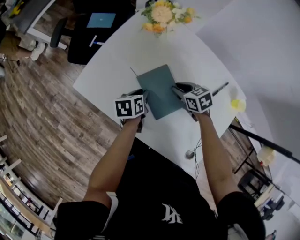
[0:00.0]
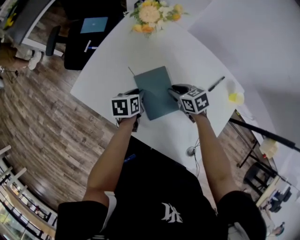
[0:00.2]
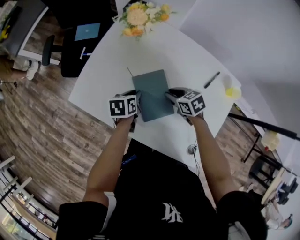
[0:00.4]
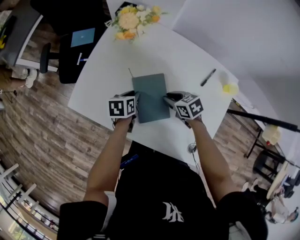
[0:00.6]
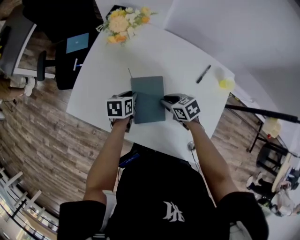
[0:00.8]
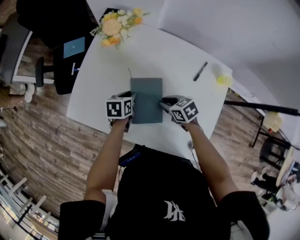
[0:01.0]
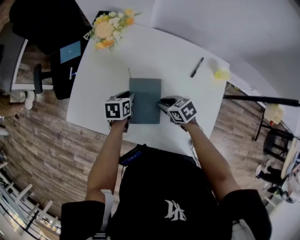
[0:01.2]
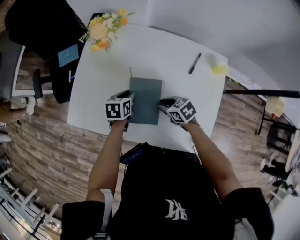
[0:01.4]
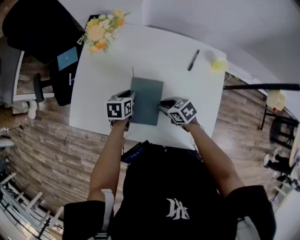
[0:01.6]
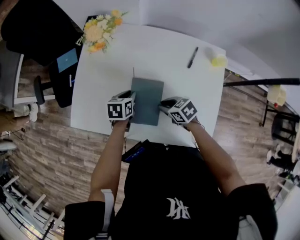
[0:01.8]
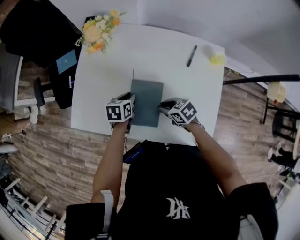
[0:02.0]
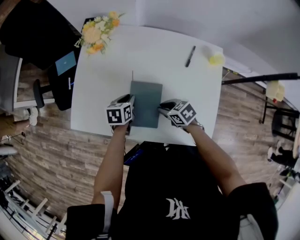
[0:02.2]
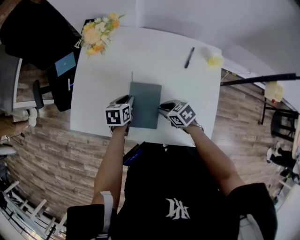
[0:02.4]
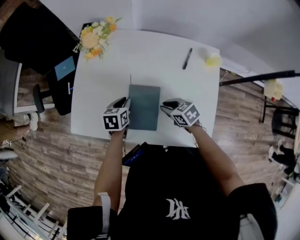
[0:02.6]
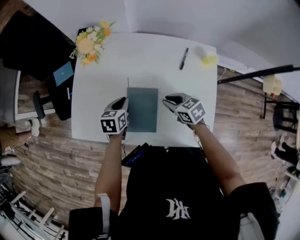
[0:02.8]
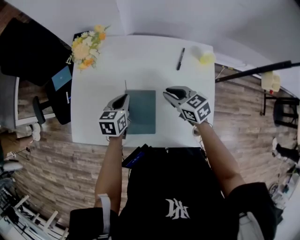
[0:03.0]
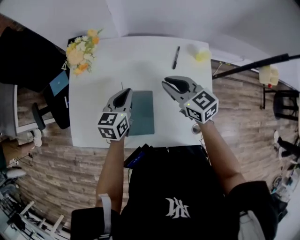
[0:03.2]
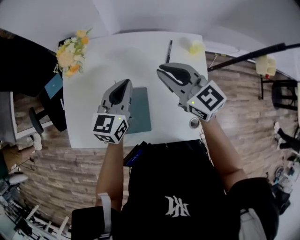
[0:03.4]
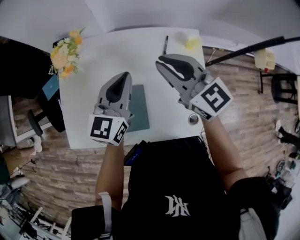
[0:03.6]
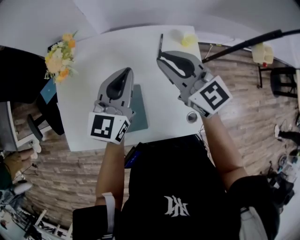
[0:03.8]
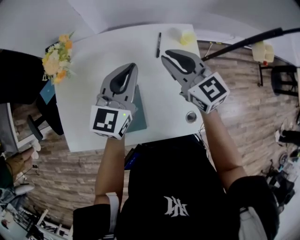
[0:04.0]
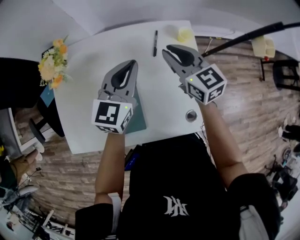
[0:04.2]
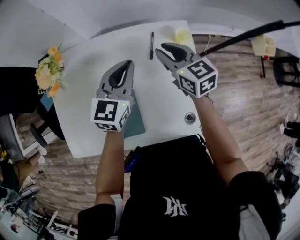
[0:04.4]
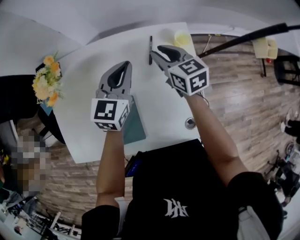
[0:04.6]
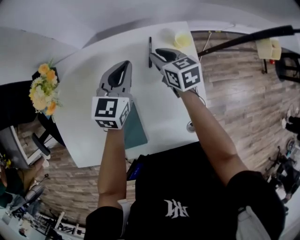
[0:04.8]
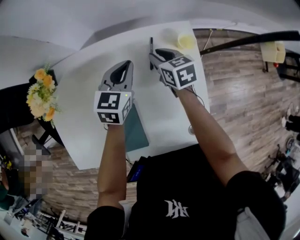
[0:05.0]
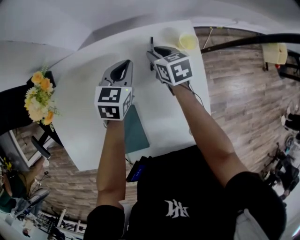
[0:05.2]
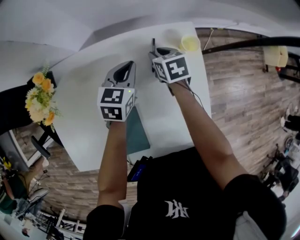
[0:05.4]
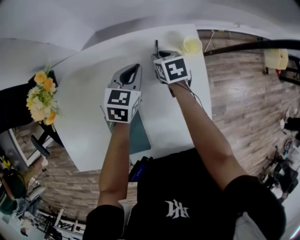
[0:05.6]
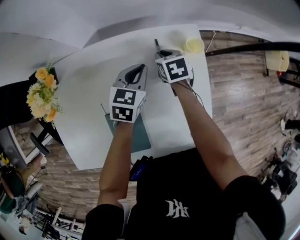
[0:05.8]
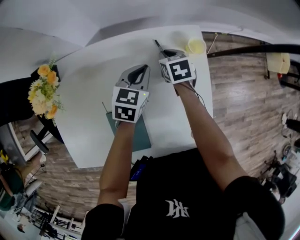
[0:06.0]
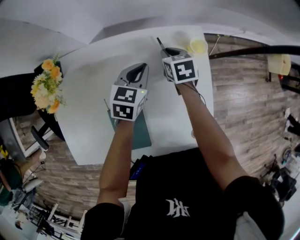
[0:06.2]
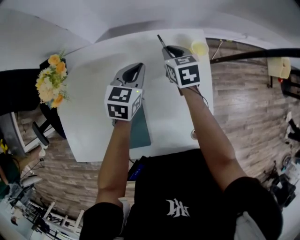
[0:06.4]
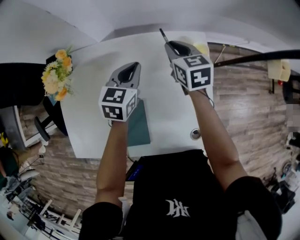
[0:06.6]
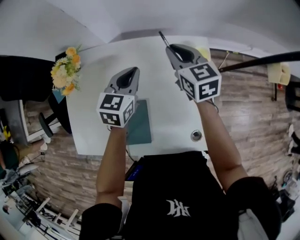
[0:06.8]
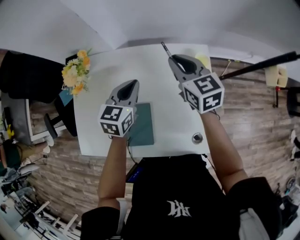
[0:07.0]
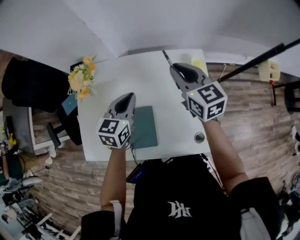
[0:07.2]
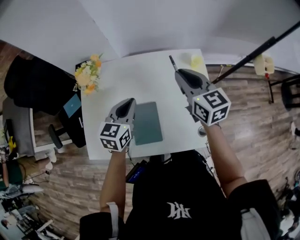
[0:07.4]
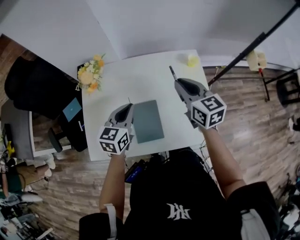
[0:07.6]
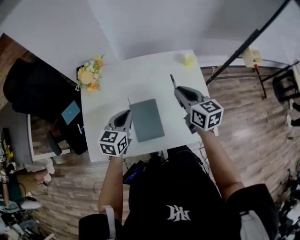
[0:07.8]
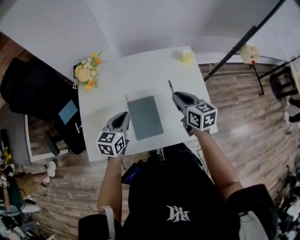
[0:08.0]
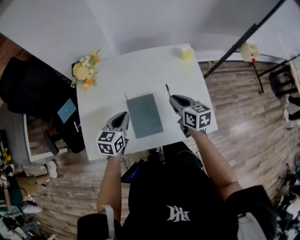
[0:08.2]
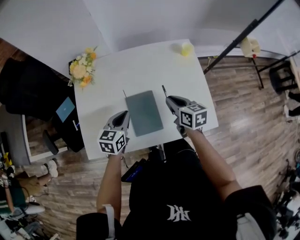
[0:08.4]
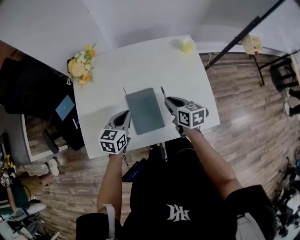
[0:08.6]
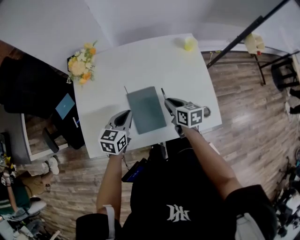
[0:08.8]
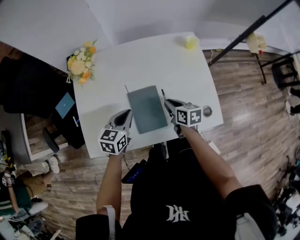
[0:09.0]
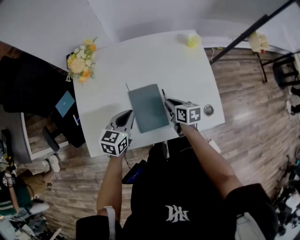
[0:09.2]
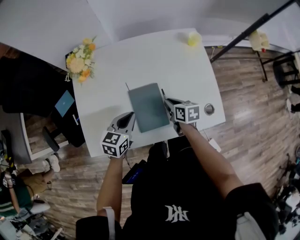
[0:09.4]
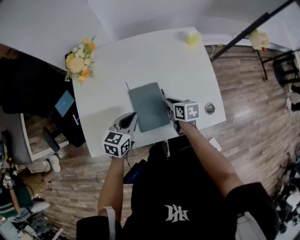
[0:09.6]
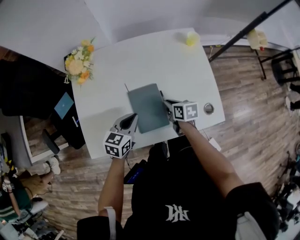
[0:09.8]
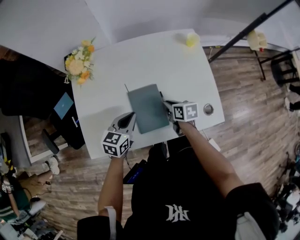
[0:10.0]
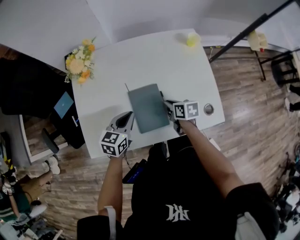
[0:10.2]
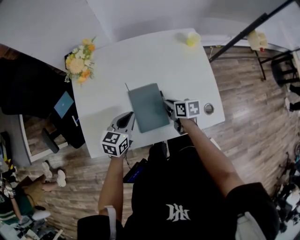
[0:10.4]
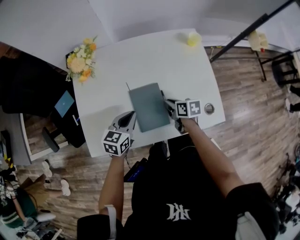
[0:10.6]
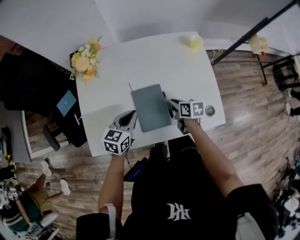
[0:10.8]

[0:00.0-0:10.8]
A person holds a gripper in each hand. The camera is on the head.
0:00.0 to 0:01.6: The left gripper is displaced to the right by about 5 cm, and changes its angle by roughly 30 degrees; the right gripper goes some 10 cm backward.
0:01.6 to 0:03.0: The right gripper goes approximately 10 cm upward and to the right, and swivels about 30 degrees. Meanwhile the left gripper is displaced upward by about 10 cm.
0:03.0 to 0:04.6: The left gripper is displaced to the right, forward and upward by roughly 25 cm, and changes its angle by about 30 degrees. The right gripper shifts about 20 cm forward and to the right, goes upward and returns, roughly 20 cm each way, and changes its angle by some 30 degrees.
0:04.6 to 0:06.2: Both grippers move downward, about 10 cm. The right gripper changes its angle by roughly 20 degrees.
0:06.2 to 0:07.8: The left gripper shifts about 30 cm backward, to the left and upward. Meanwhile the right gripper is displaced backward and upward by roughly 30 cm, and points its fingers approximately 30 degrees further upward.
0:07.8 to 0:09.2: The right gripper travels downward by some 20 cm, and swivels some 30 degrees; the left gripper is displaced downward by roughly 10 cm.
0:09.2 to 0:10.8: There are only small adjustments of the grippers.

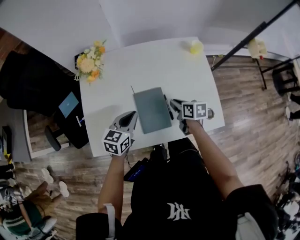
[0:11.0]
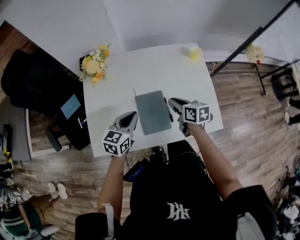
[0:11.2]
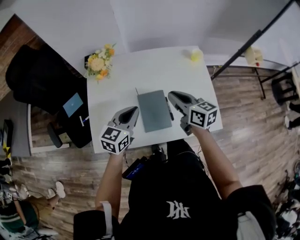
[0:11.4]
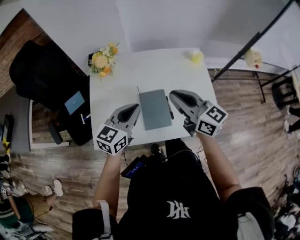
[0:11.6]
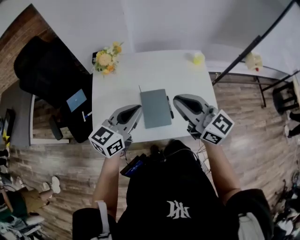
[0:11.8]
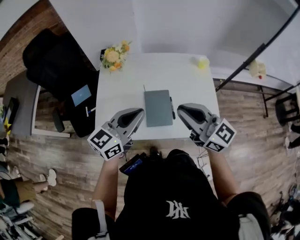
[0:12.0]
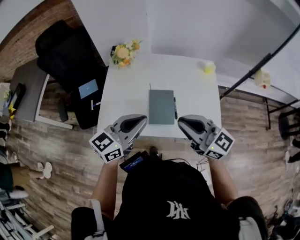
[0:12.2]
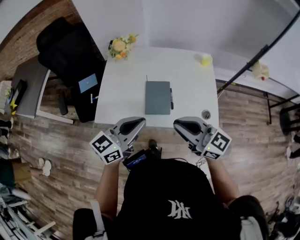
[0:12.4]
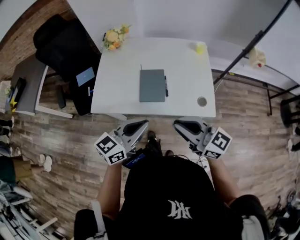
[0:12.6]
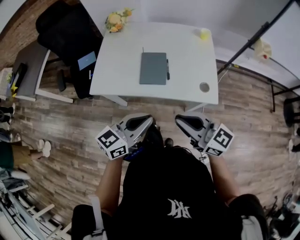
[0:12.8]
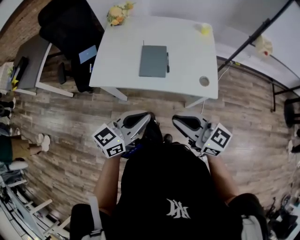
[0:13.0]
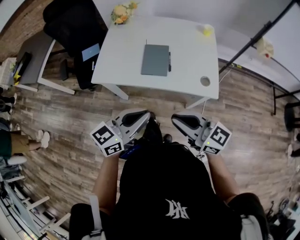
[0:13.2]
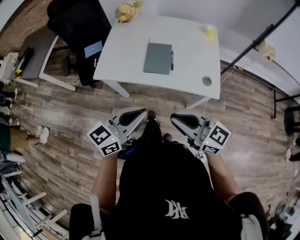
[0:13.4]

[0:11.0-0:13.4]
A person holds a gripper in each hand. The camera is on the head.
0:11.0 to 0:12.2: The grippers both shift upward and backward by about 30 cm. The left gripper rotates about 30 degrees, while the right gripper points its fingers approximately 40 degrees further upward.
0:12.2 to 0:13.4: The two grippers go some 20 cm backward.

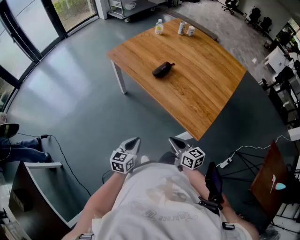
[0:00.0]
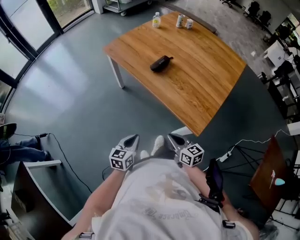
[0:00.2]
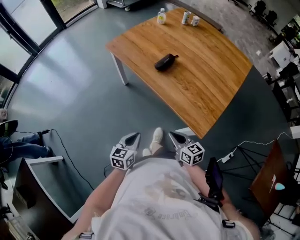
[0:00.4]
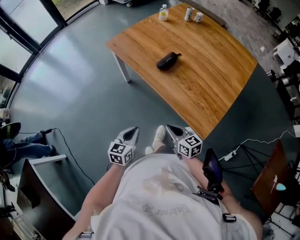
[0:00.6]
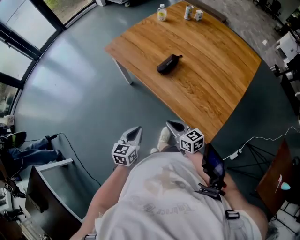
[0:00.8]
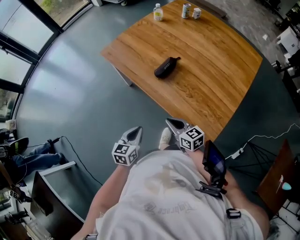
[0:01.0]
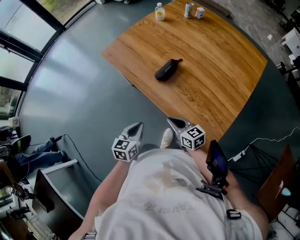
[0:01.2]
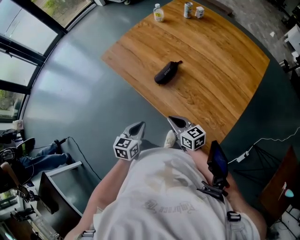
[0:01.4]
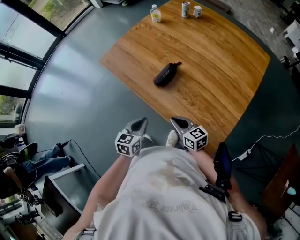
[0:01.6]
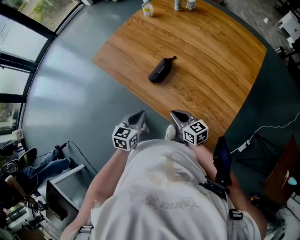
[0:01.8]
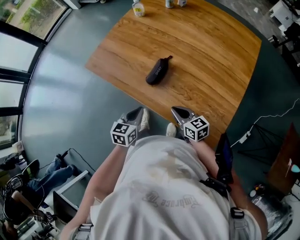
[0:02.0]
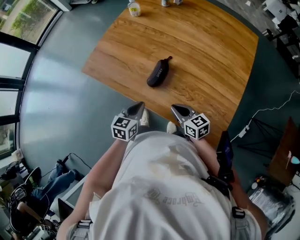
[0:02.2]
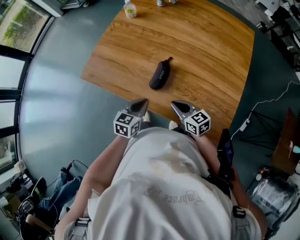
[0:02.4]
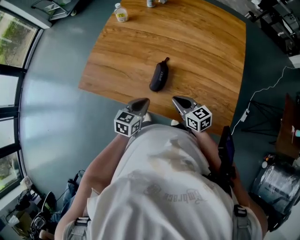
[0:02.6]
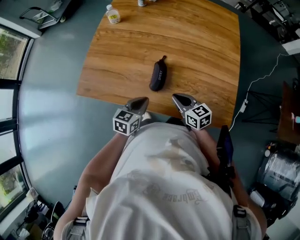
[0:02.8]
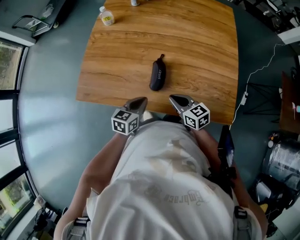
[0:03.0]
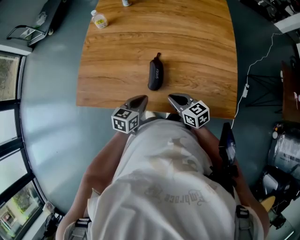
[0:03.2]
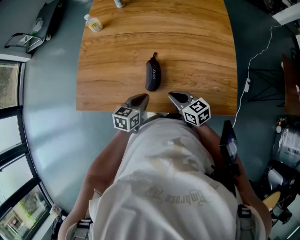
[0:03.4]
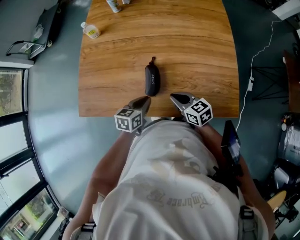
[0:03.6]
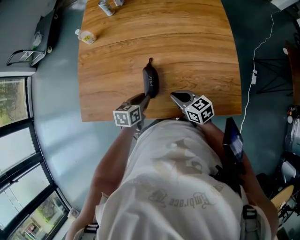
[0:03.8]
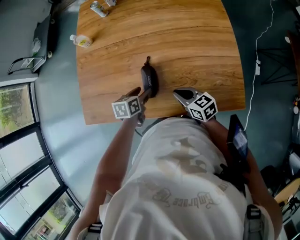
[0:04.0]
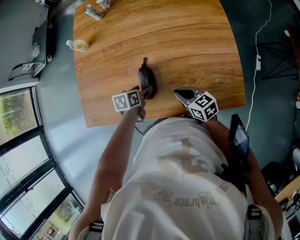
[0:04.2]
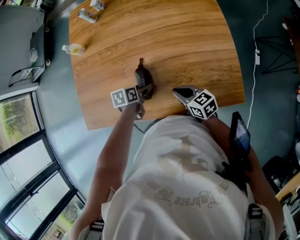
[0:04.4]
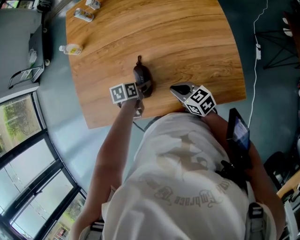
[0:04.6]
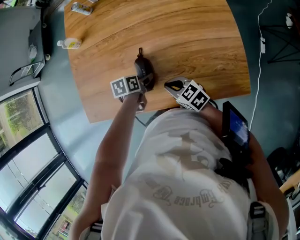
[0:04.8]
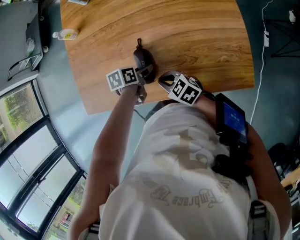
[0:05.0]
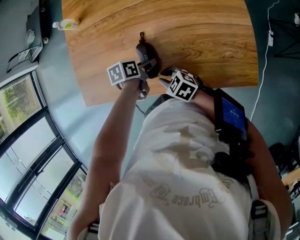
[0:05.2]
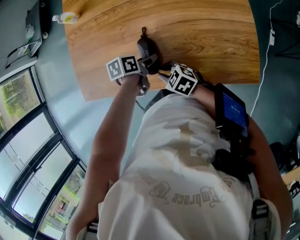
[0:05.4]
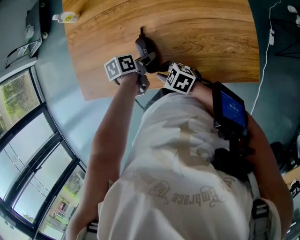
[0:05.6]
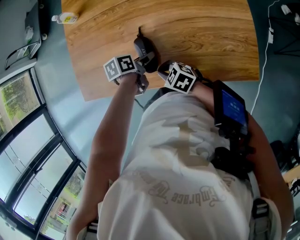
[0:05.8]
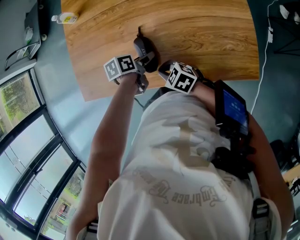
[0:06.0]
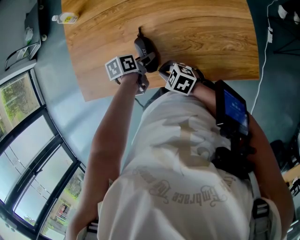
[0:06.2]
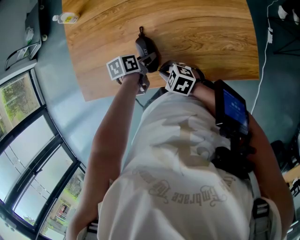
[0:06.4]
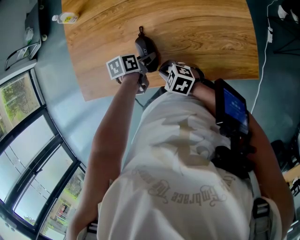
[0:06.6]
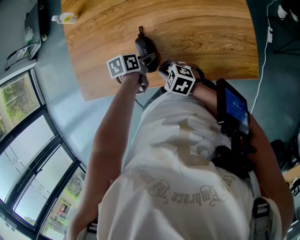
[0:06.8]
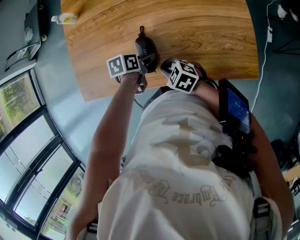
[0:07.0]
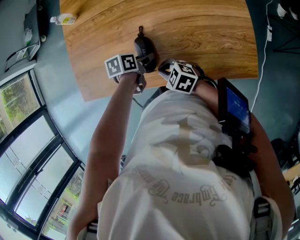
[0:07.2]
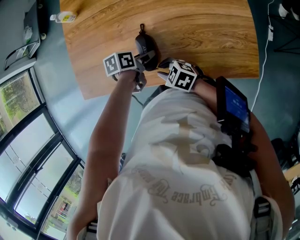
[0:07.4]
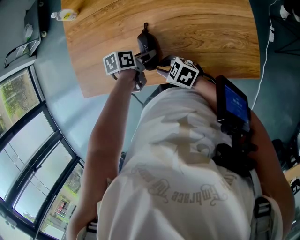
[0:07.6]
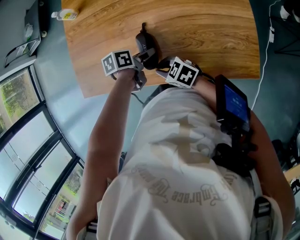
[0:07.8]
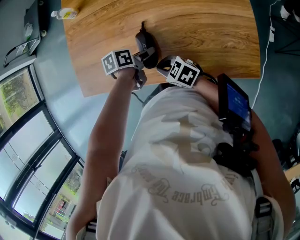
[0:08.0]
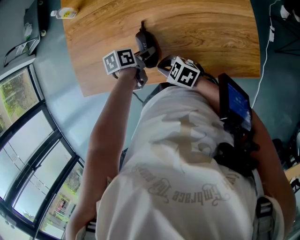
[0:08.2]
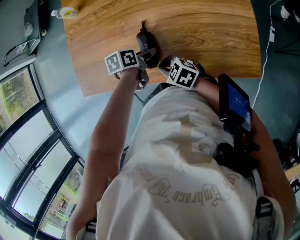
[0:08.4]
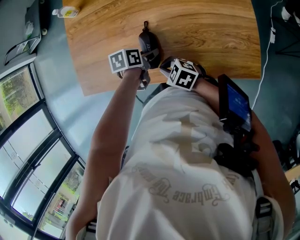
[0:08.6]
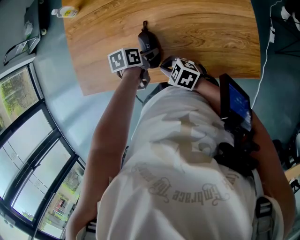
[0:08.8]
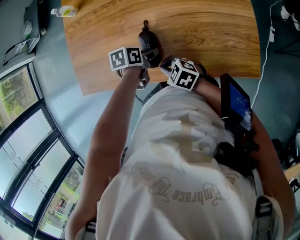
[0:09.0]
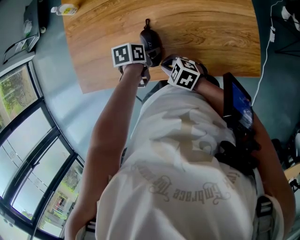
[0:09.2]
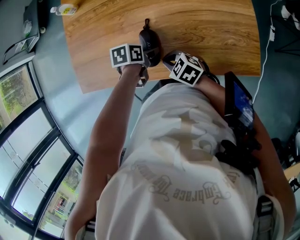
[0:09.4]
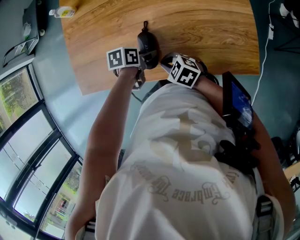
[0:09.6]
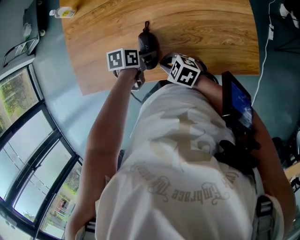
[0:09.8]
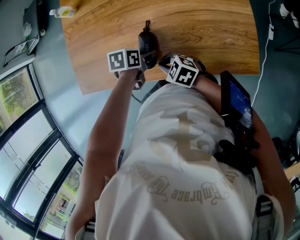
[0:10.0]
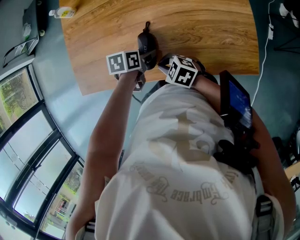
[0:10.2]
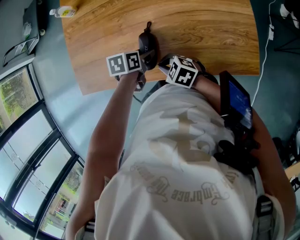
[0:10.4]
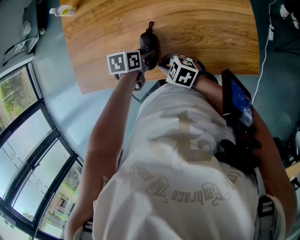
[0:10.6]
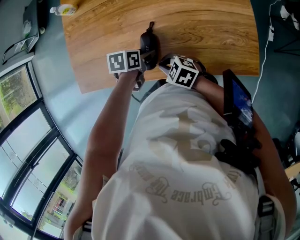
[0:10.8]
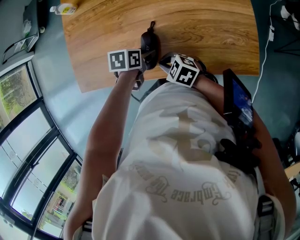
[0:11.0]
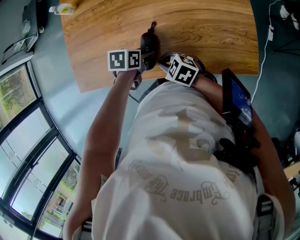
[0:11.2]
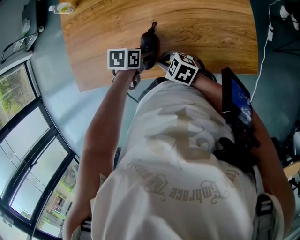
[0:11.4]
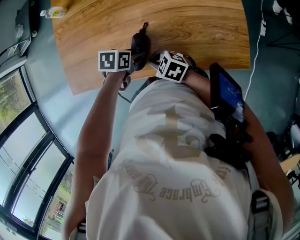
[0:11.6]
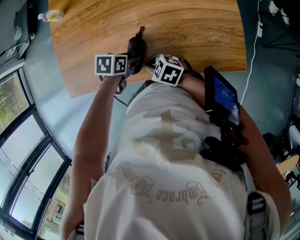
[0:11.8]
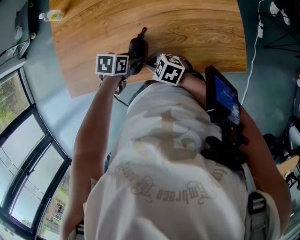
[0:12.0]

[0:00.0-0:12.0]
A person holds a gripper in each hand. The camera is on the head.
0:00.0 to 0:01.6: Both grippers move forward, approximately 25 cm.
0:01.6 to 0:03.0: The left gripper ends up some 20 cm from where it was, and rotates some 40 degrees, while the right gripper ends up about 15 cm from where it was, and swivels approximately 30 degrees.
0:03.0 to 0:04.4: The left gripper heads forward and downward, covering about 15 cm, turns by some 30 degrees, and opens its fingers, while the right gripper goes some 5 cm to the right.
0:04.4 to 0:06.0: The right gripper shifts by some 10 cm, and rotates about 30 degrees.
0:06.0 to 0:10.4: The grippers make only small movements.
0:10.4 to 0:12.0: The grippers make only small movements.
